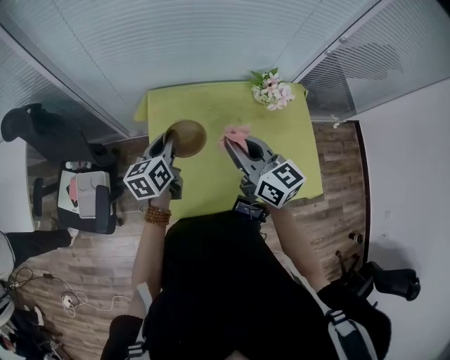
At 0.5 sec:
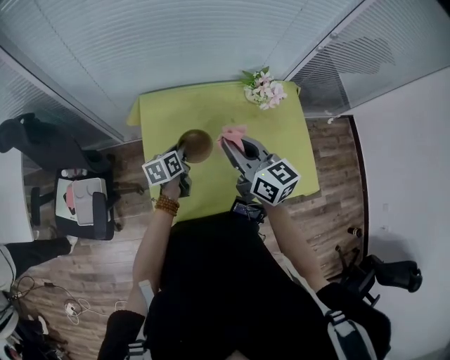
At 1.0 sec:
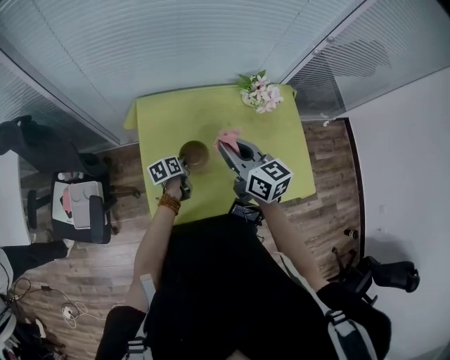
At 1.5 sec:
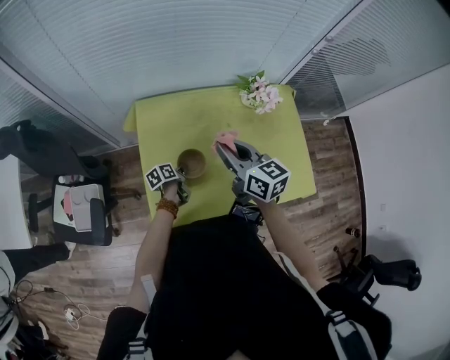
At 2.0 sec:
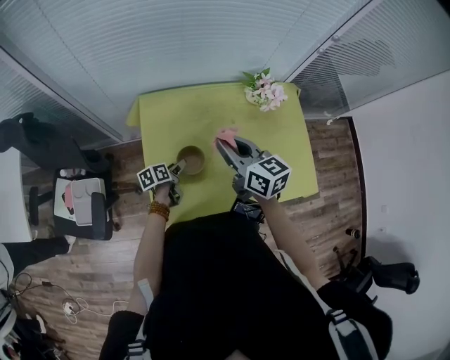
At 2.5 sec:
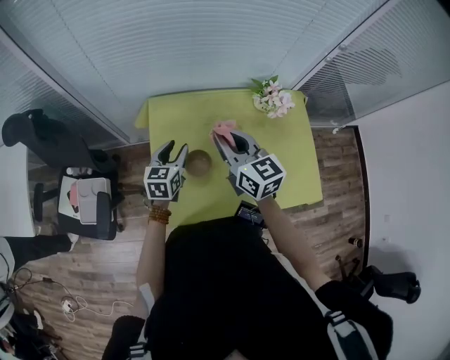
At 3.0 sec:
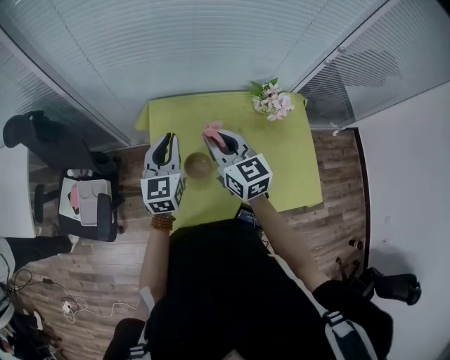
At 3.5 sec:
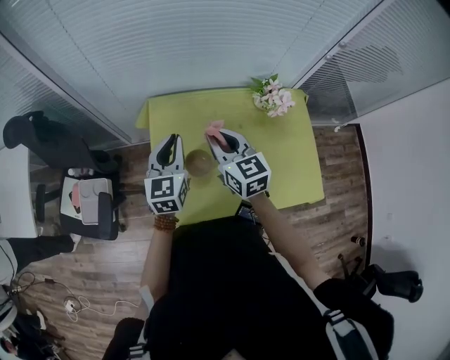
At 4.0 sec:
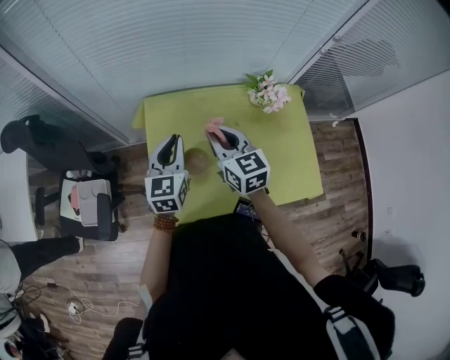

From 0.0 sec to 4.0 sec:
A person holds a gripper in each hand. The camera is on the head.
From 0.0 sec to 2.0 sec: The right gripper is displaced downward by about 5 cm; the left gripper heads downward, covering about 25 cm, changes its angle by some 40 degrees, and opens its fingers.
From 2.0 sec to 4.0 sec: The left gripper goes roughly 25 cm upward, rotates around the line of its fingers by roughly 50 degrees, clockwise from behind, and closes its fingers.

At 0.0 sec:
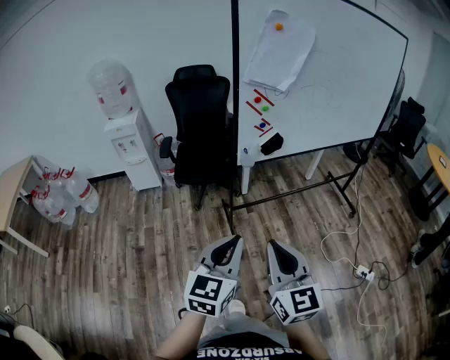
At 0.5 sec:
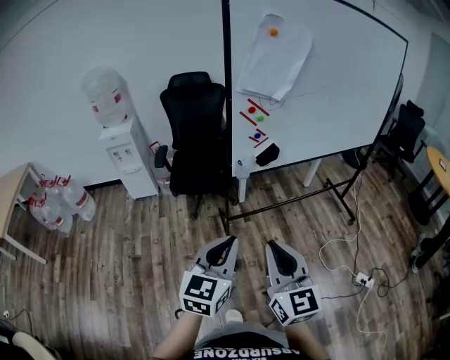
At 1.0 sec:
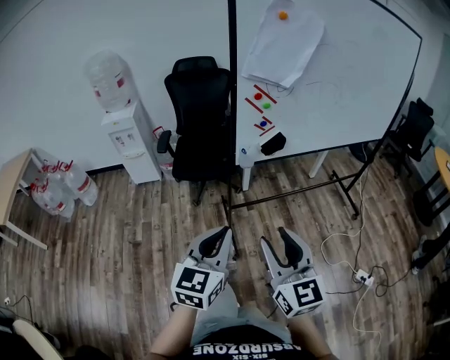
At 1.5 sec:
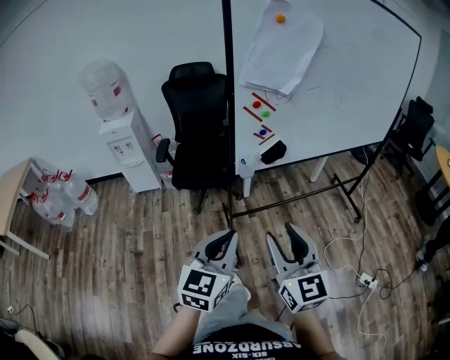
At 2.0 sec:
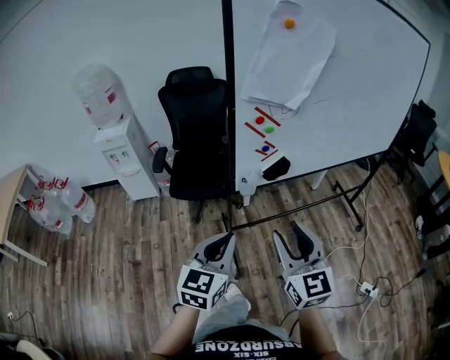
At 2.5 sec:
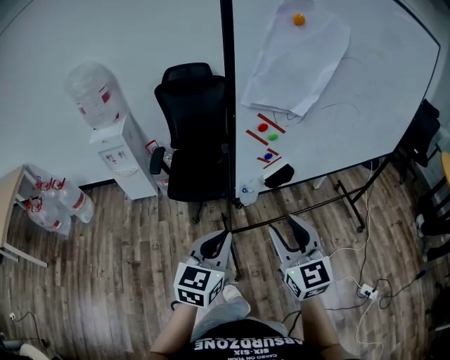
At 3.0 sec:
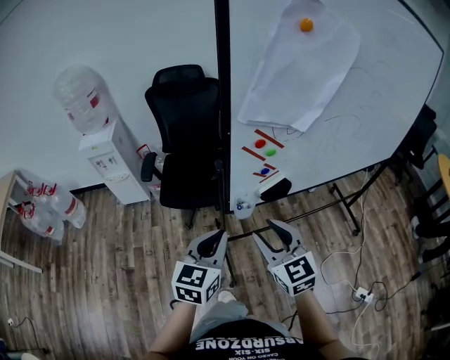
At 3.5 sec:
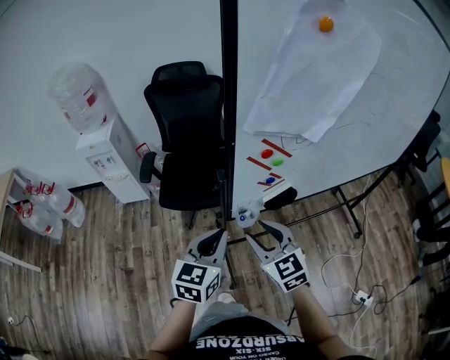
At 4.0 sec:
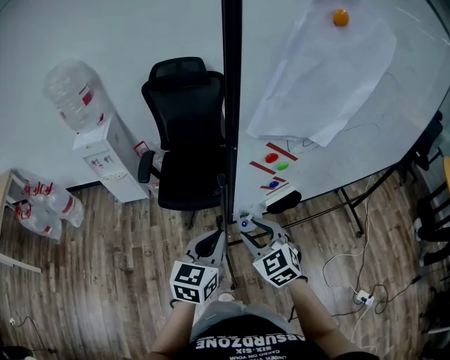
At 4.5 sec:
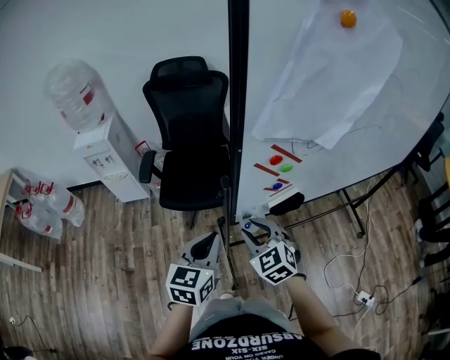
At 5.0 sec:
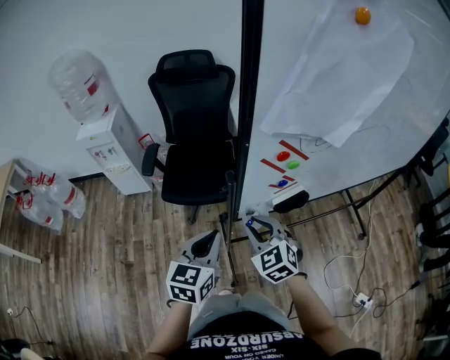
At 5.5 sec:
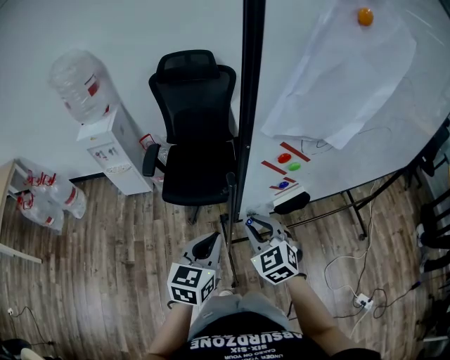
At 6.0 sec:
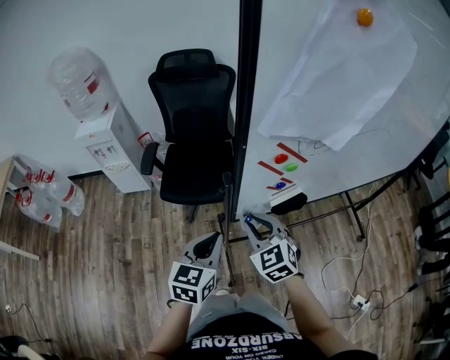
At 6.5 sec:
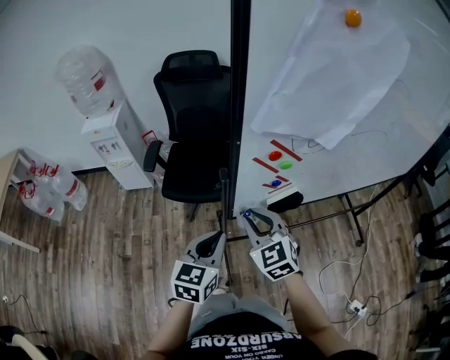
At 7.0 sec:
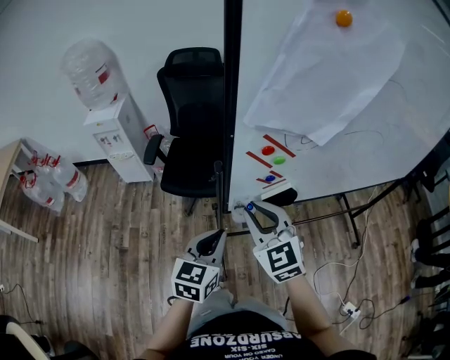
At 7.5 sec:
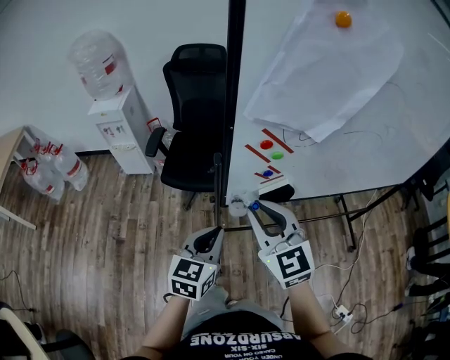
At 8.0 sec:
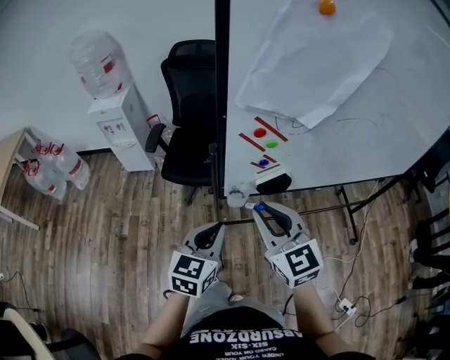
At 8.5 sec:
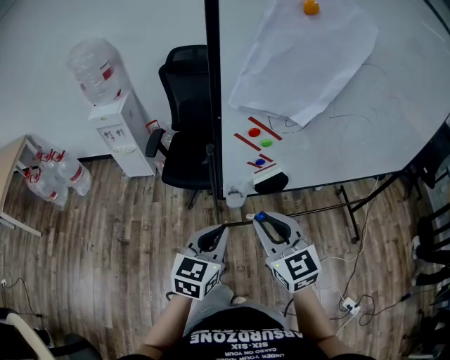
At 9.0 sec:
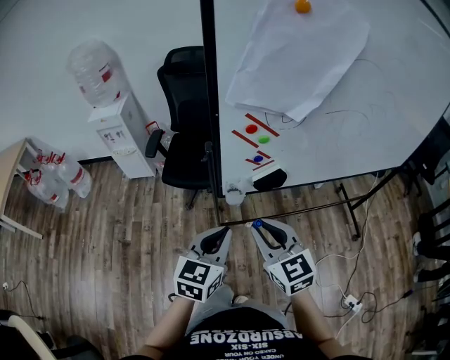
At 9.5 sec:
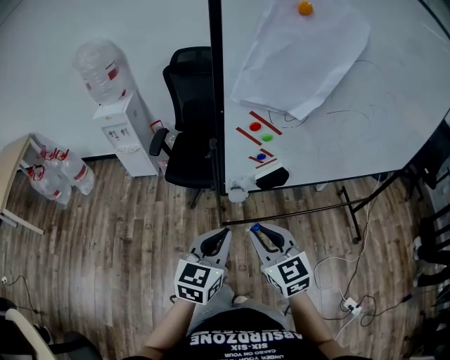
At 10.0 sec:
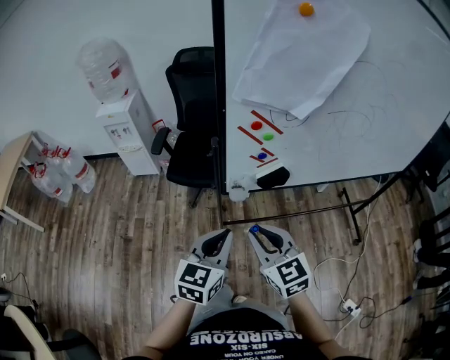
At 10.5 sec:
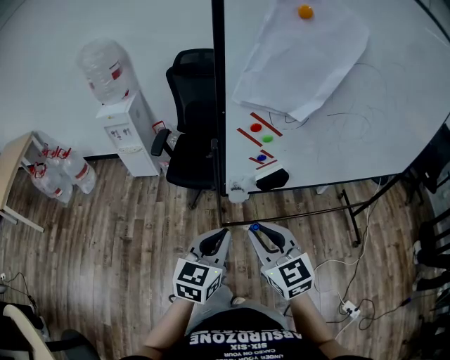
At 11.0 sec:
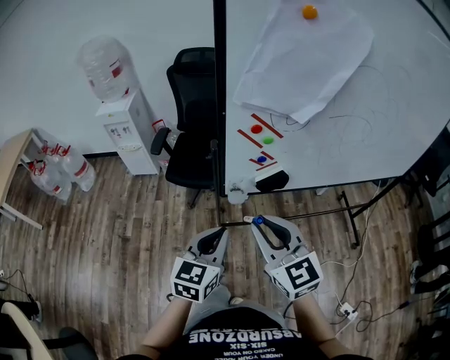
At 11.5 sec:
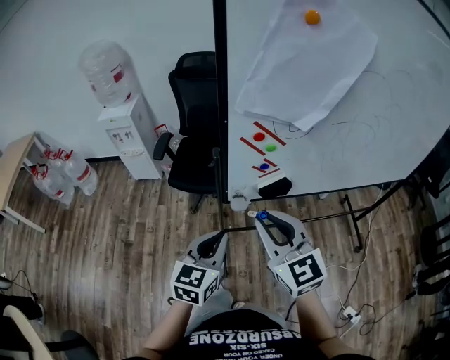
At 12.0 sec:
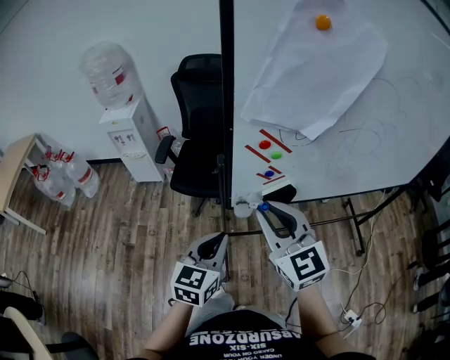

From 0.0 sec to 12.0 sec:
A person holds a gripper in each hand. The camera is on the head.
From 0.0 sec to 2.0 sec: Both grippers travel together forward, approximately 20 cm. The right gripper opens.
From 2.0 sec to 4.0 sec: The right gripper shifts roughly 30 cm forward and downward, and changes its angle by approximately 30 degrees; the left gripper goes approximately 20 cm forward.
From 4.0 sec to 6.0 sec: The right gripper closes.
From 6.0 sec to 8.0 sec: The right gripper travels upward, backward and to the right by roughly 15 cm, and changes its angle by approximately 20 degrees. The left gripper shifts some 10 cm backward and to the right.
From 8.0 sec to 10.0 sec: The left gripper is displaced backward by some 5 cm. Meanwhile the right gripper is displaced backward and downward by some 10 cm.
From 10.0 sec to 12.0 sec: The right gripper heads upward and forward, covering approximately 15 cm, while the left gripper shifts roughly 5 cm forward.

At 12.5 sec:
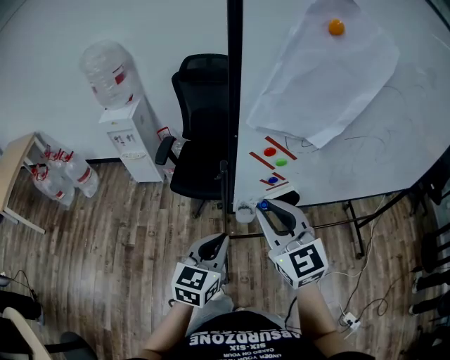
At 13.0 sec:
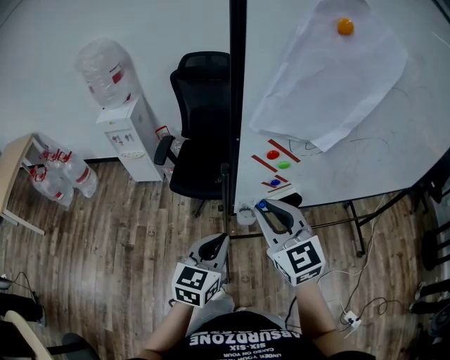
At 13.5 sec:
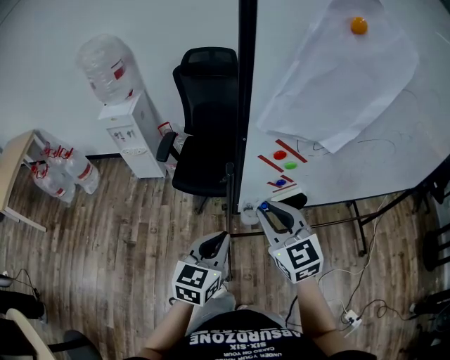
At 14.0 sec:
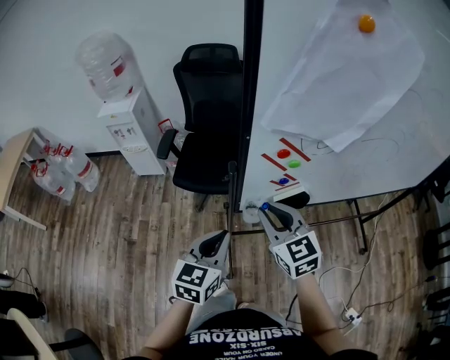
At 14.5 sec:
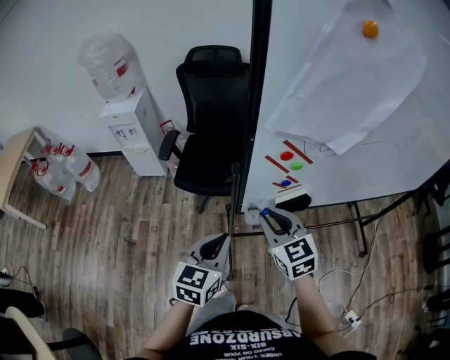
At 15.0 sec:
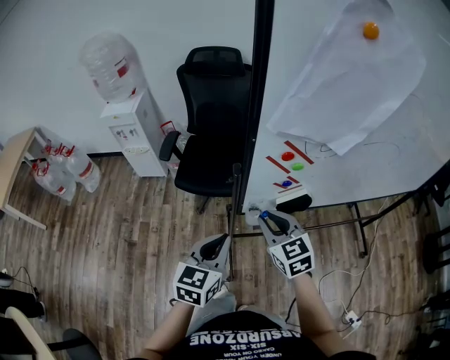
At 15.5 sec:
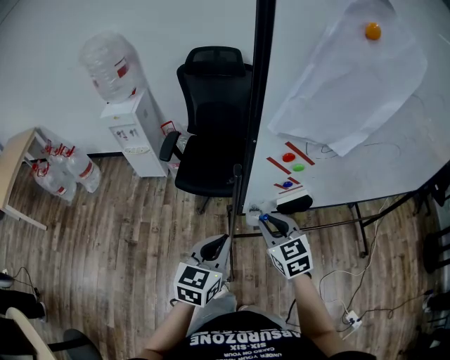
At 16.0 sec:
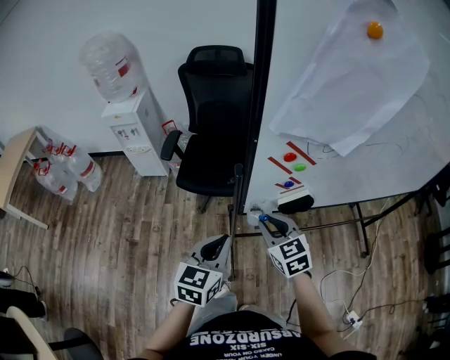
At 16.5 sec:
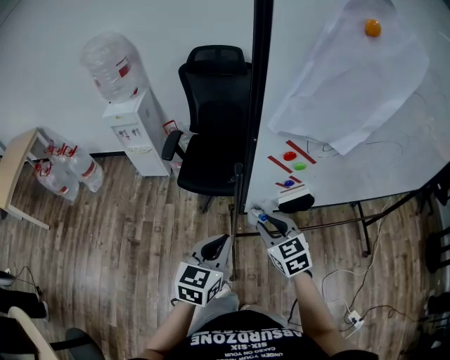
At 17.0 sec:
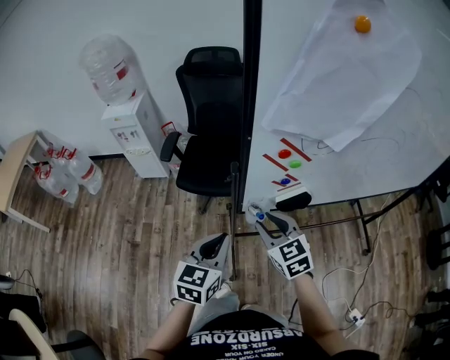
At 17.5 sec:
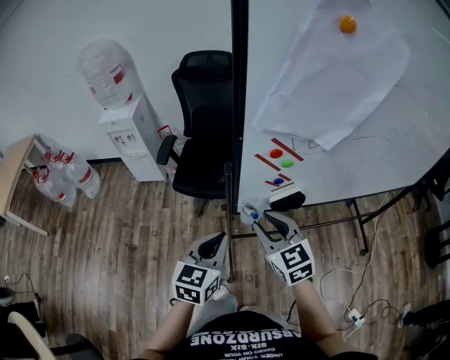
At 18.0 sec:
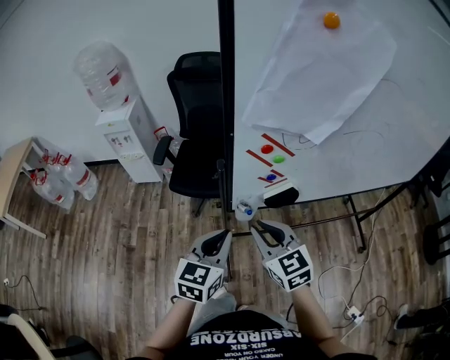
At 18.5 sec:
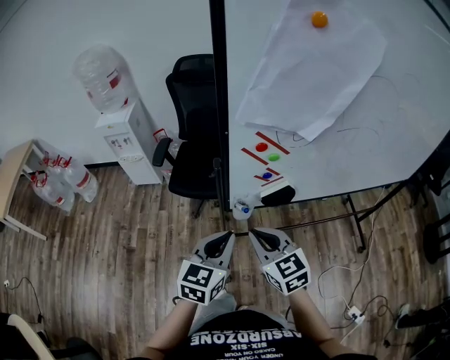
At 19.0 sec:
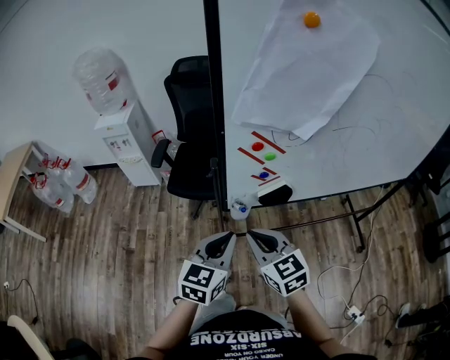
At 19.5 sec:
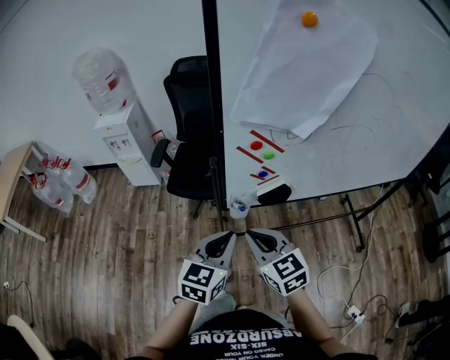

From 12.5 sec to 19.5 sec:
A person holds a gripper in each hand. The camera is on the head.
From 12.5 sec to 14.5 sec: The right gripper travels downward by roughly 10 cm.
From 14.5 sec to 16.0 sec: The right gripper moves downward, about 5 cm.
From 16.0 sec to 17.5 sec: The right gripper travels upward by approximately 5 cm.
From 17.5 sec to 19.5 sec: The right gripper heads backward, covering approximately 5 cm, and closes its fingers. Meanwhile the left gripper goes about 5 cm to the right.

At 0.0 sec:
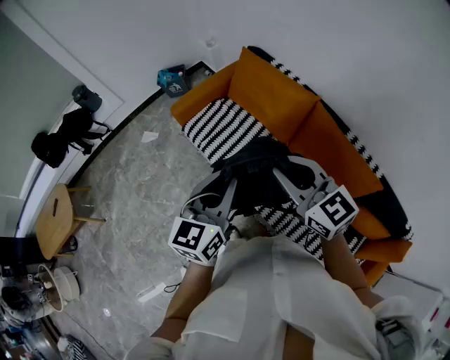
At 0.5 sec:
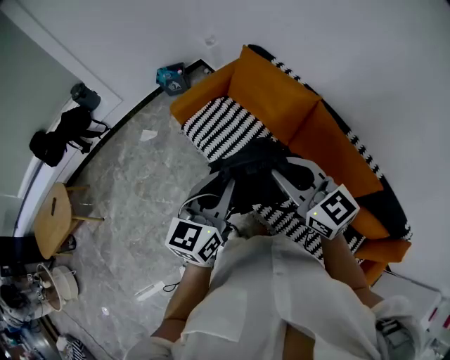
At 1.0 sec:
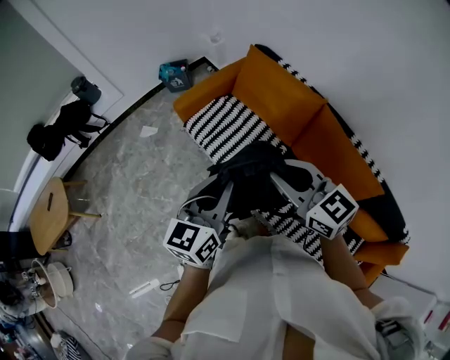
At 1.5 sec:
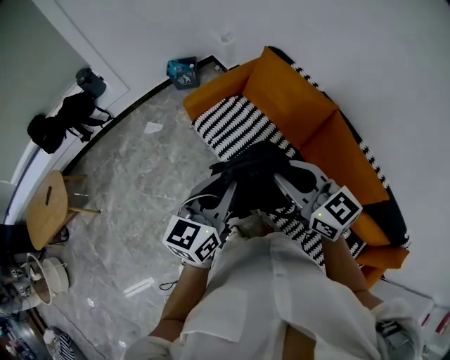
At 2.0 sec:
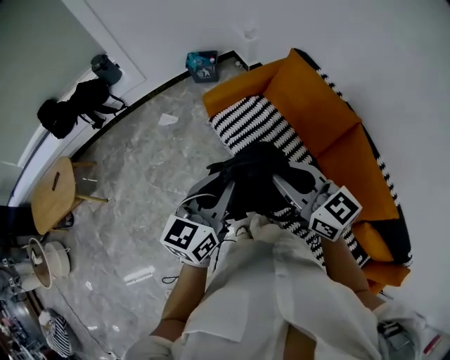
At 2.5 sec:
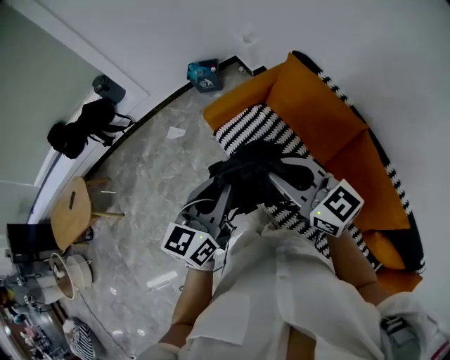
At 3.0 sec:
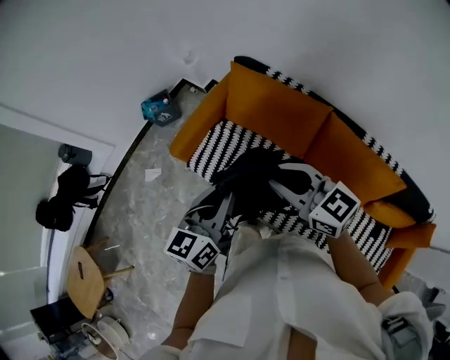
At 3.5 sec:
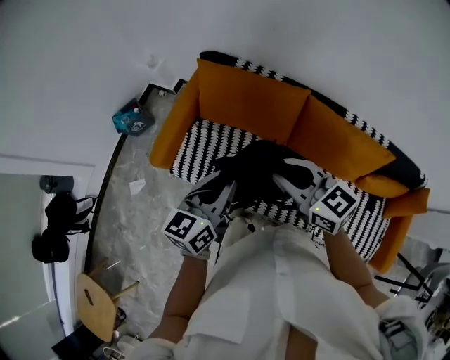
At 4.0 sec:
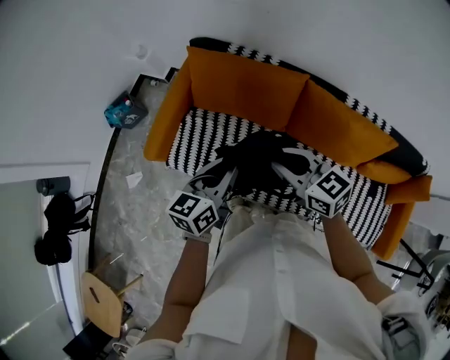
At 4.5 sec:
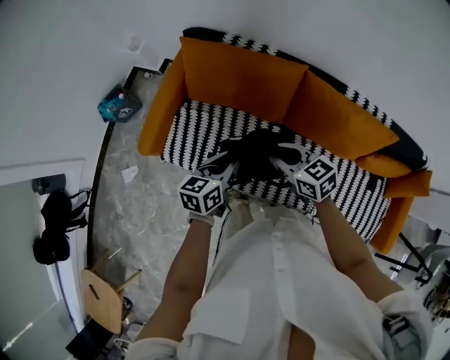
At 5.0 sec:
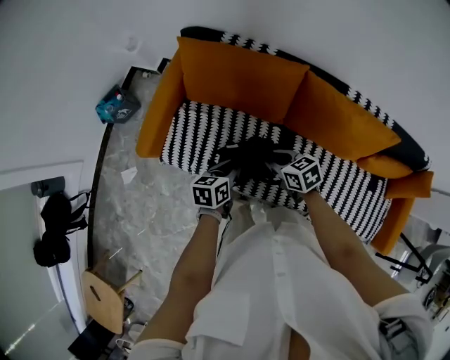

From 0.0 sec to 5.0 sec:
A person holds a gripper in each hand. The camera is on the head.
From 0.0 sec to 2.5 sec: Both grippers move forward and to the left, about 20 cm.
From 2.5 sec to 5.0 sec: Both grippers move downward, roughly 35 cm. The left gripper tilts its fingers some 30 degrees downward; the right gripper angles its fingers downward, by approximately 30 degrees.
